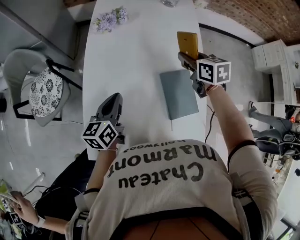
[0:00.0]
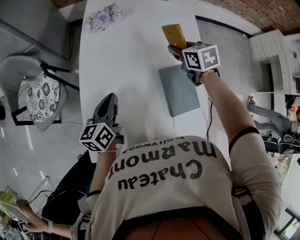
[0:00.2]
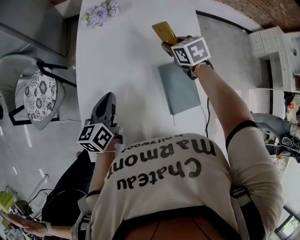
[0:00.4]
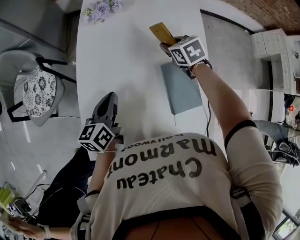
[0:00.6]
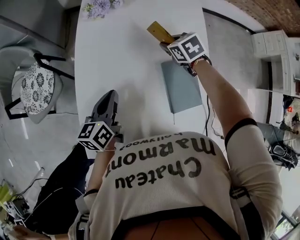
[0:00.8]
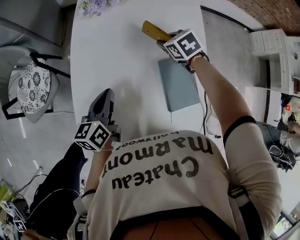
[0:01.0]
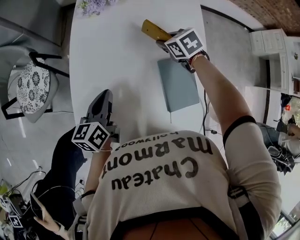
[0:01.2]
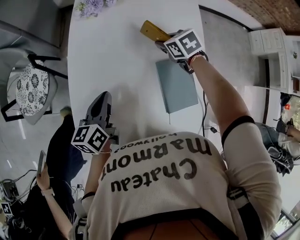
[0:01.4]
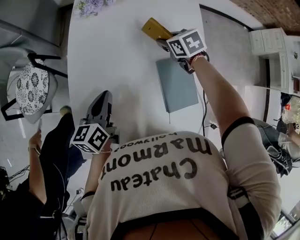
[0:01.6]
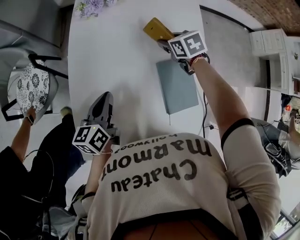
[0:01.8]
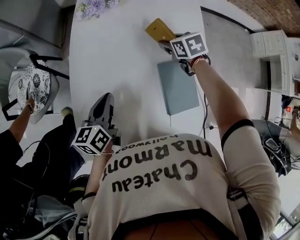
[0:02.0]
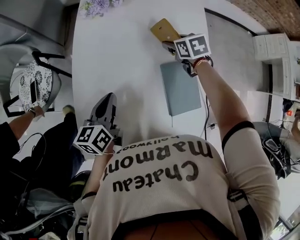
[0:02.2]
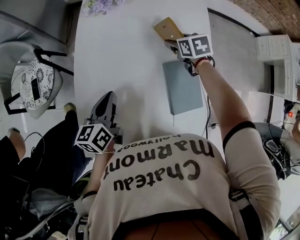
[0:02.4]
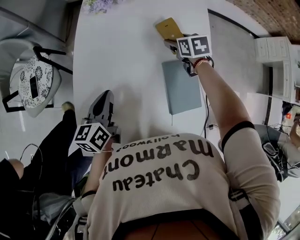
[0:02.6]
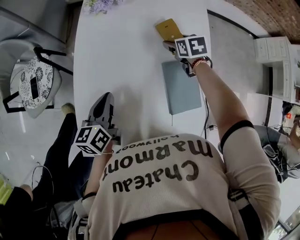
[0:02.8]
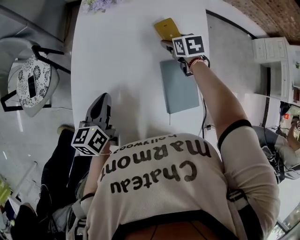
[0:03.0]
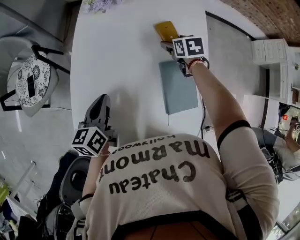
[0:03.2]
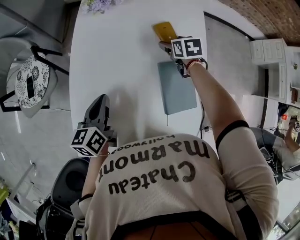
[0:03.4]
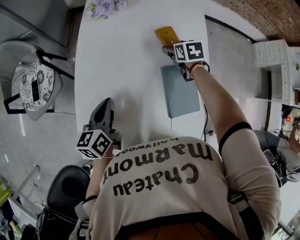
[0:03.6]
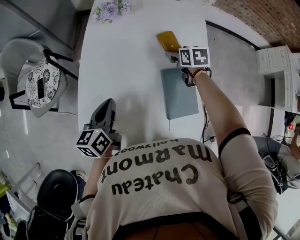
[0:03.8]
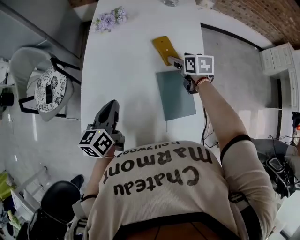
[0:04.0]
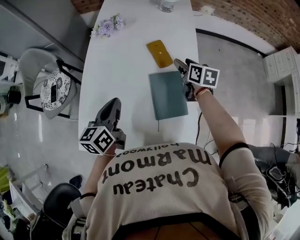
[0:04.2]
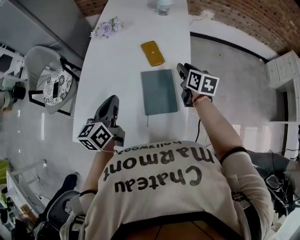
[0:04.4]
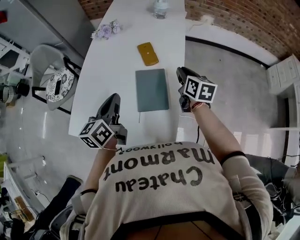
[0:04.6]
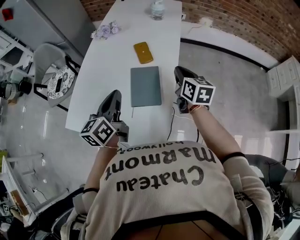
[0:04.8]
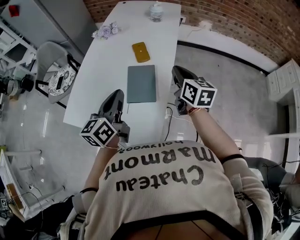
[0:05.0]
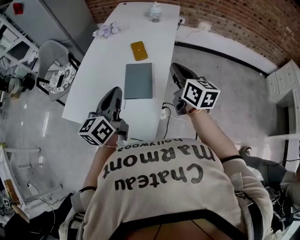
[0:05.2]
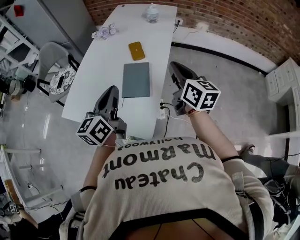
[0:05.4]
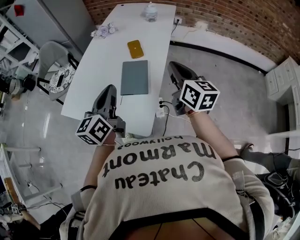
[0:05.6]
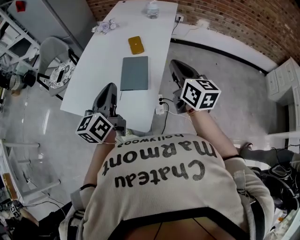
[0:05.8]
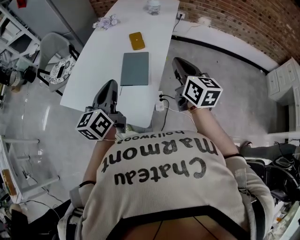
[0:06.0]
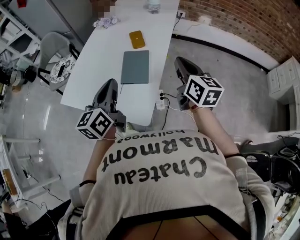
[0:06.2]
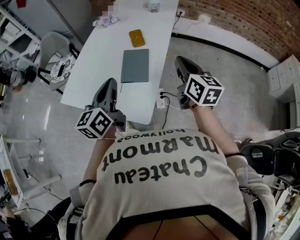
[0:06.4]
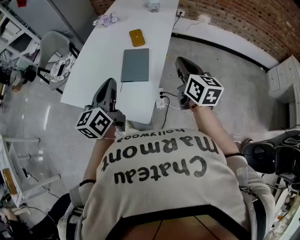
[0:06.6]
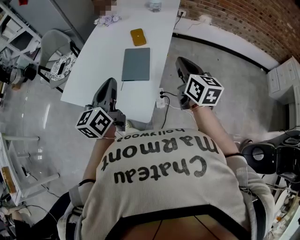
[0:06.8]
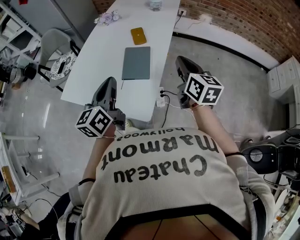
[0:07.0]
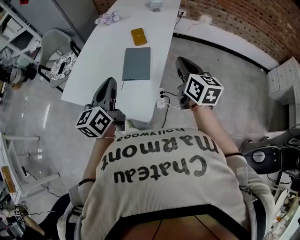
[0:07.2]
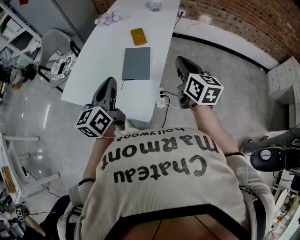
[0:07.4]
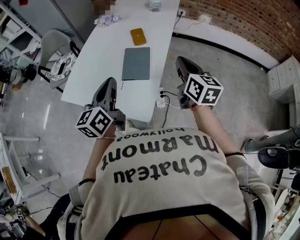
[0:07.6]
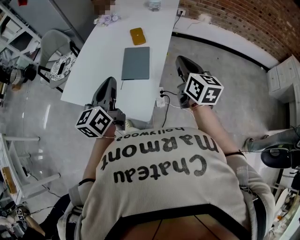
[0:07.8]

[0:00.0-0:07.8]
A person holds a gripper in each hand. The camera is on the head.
0:00.0 to 0:01.6: The right gripper heads downward, covering roughly 15 cm, and turns by approximately 20 degrees.
0:01.6 to 0:03.2: The right gripper opens up.
0:03.2 to 0:04.6: The grippers both shift to the right, upward and backward by some 25 cm. The right gripper points its fingers roughly 30 degrees further upward, and closes.
0:04.6 to 0:06.2: The left gripper heads backward, to the right and upward, covering about 20 cm; the right gripper heads backward and upward, covering about 20 cm, and rotates about 20 degrees.
0:06.2 to 0:07.8: The grippers move only a little.

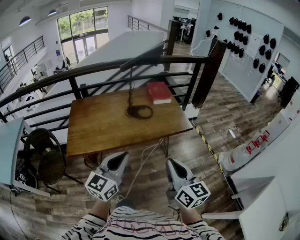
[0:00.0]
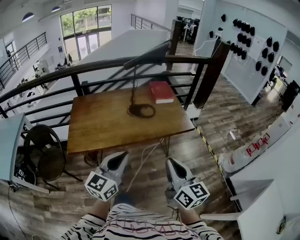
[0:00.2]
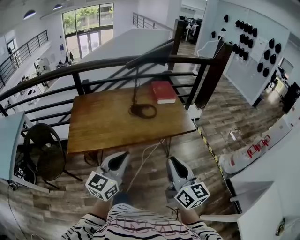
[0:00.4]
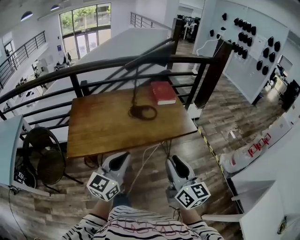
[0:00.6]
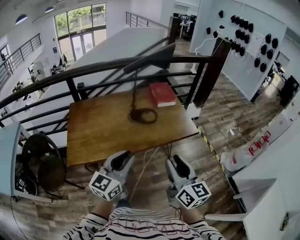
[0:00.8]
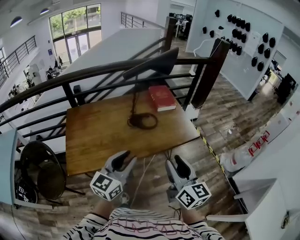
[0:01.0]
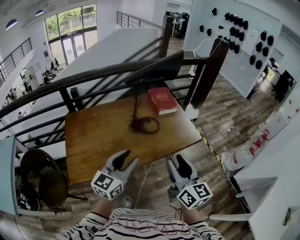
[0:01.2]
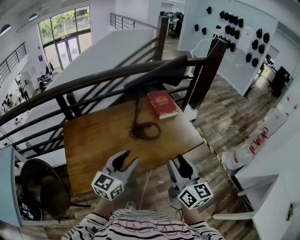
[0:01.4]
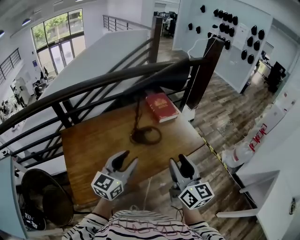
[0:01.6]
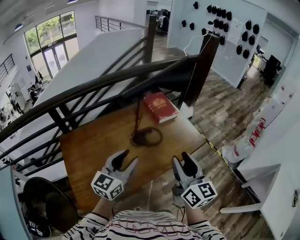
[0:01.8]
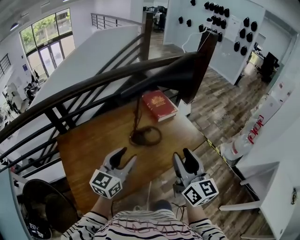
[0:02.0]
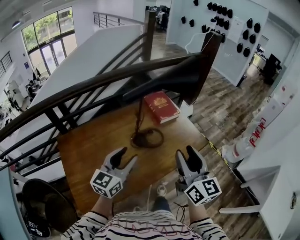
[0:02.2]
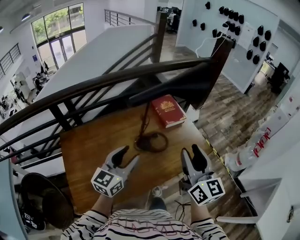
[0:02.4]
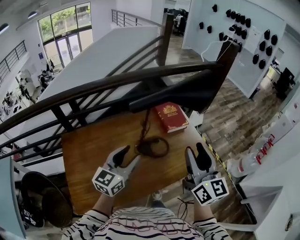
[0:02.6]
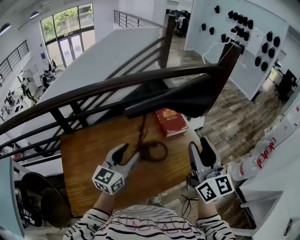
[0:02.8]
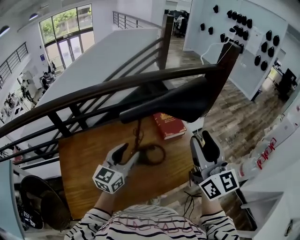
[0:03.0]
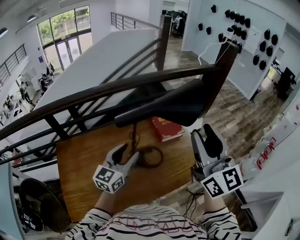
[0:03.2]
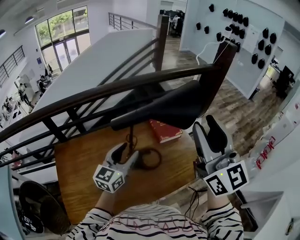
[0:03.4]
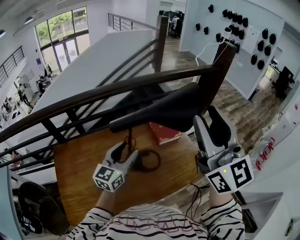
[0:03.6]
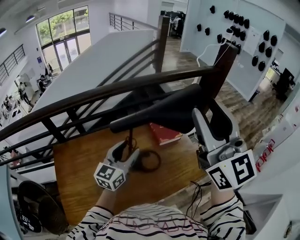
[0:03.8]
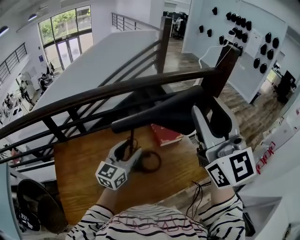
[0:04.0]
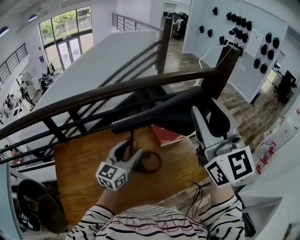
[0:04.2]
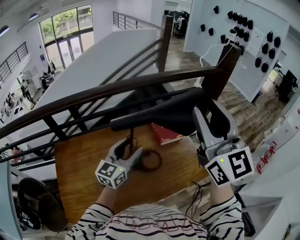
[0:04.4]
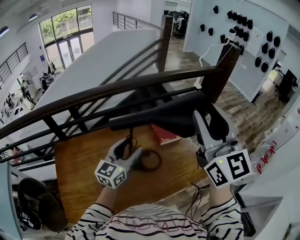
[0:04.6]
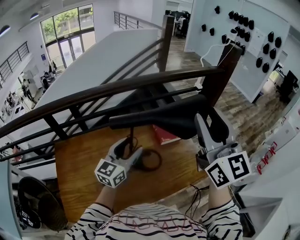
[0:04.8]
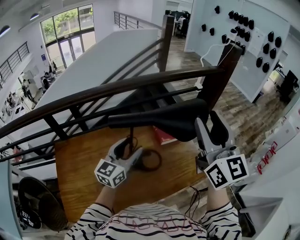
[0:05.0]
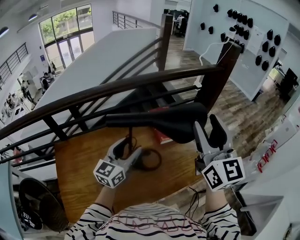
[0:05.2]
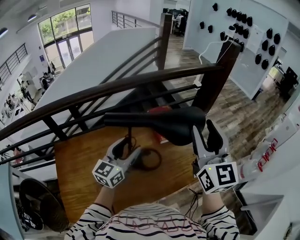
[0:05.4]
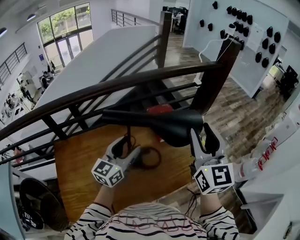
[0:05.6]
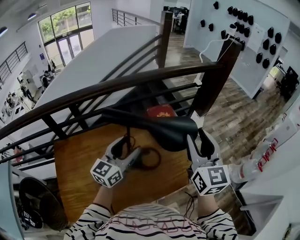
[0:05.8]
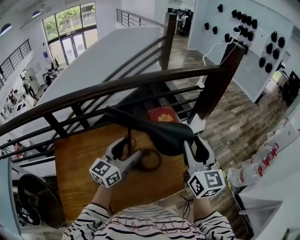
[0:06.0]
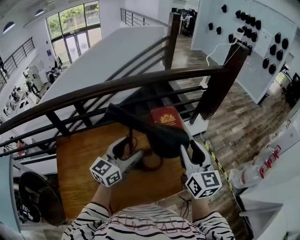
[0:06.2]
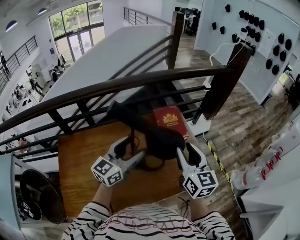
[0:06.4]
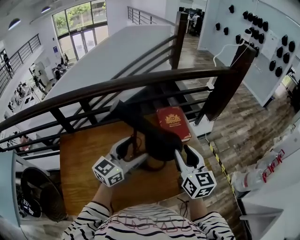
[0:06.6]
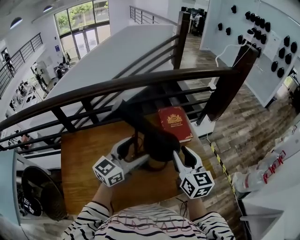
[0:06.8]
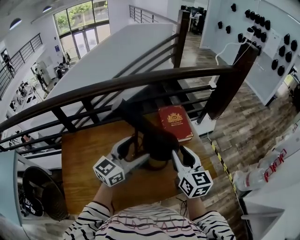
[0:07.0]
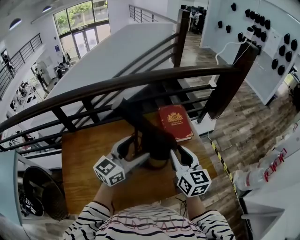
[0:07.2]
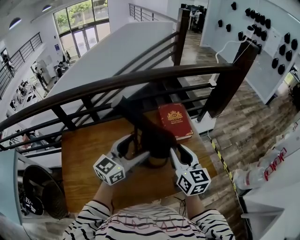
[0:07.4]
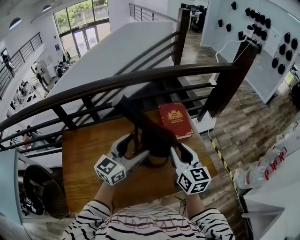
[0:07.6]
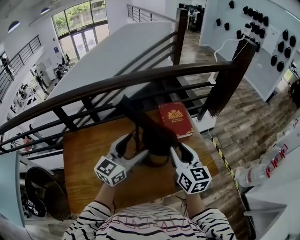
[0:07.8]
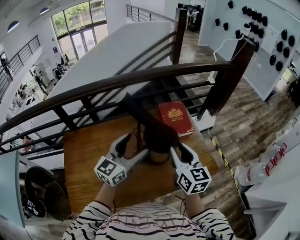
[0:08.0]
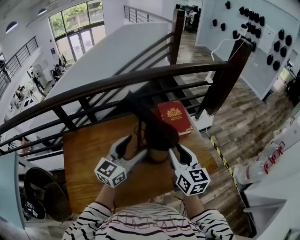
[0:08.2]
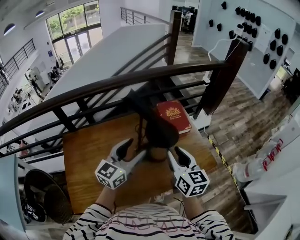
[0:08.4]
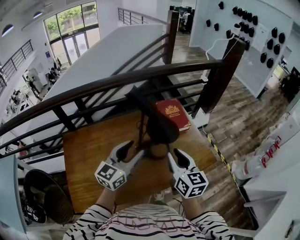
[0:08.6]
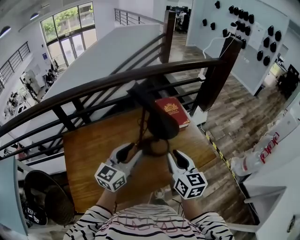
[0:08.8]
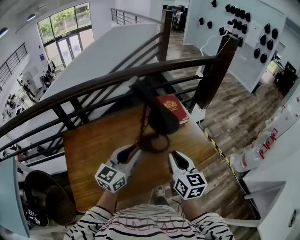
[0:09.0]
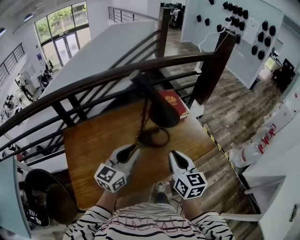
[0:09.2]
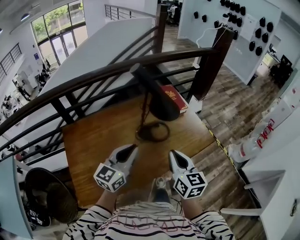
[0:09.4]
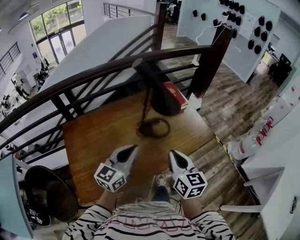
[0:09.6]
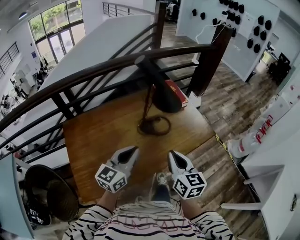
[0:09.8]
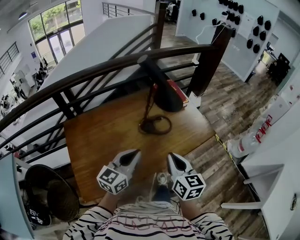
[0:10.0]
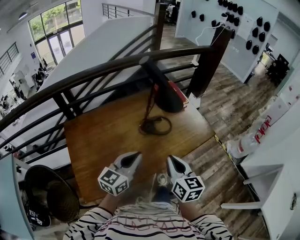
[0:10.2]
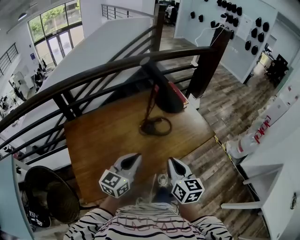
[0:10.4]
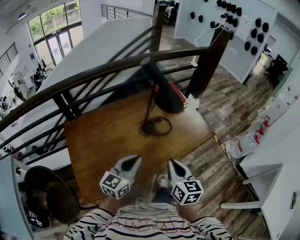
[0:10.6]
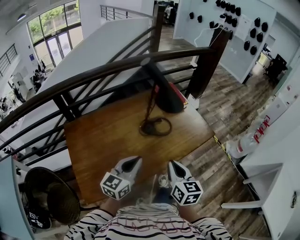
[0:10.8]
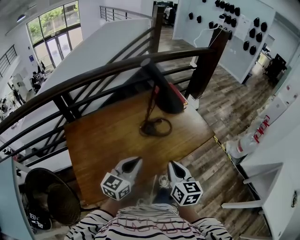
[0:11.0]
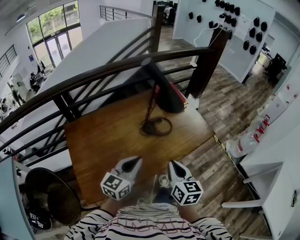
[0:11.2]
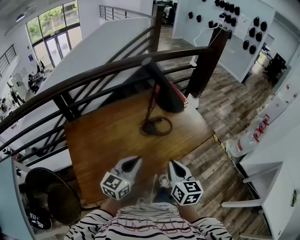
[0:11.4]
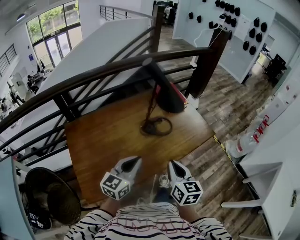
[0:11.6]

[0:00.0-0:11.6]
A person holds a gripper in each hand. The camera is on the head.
0:00.0 to 0:01.4: Both grippers travel together forward and to the left, some 30 cm. The right gripper opens up, while the left gripper opens.
0:01.4 to 0:02.8: Both grippers travel together forward, approximately 25 cm.
0:02.8 to 0:04.4: The right gripper travels upward and forward by approximately 15 cm, and rotates some 20 degrees. Meanwhile the left gripper goes about 10 cm forward and to the right.
0:04.4 to 0:05.8: The right gripper travels downward by about 15 cm.
0:05.8 to 0:07.2: The right gripper is displaced downward and to the left by about 15 cm, and turns by about 20 degrees.
0:07.2 to 0:08.8: Both grippers travel together backward, about 15 cm. The left gripper closes up.
0:08.8 to 0:10.2: The two grippers go approximately 15 cm backward. The right gripper closes, while the left gripper closes its fingers.
0:10.2 to 0:11.6: The grippers stay close to where they were, moving slightly.

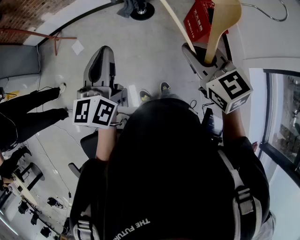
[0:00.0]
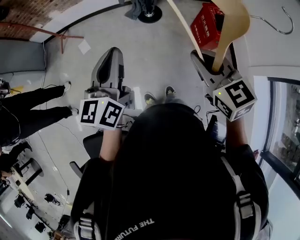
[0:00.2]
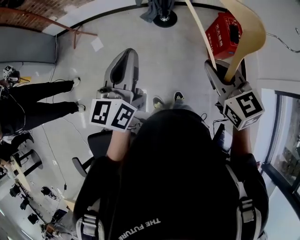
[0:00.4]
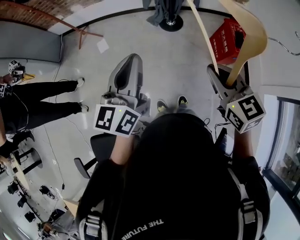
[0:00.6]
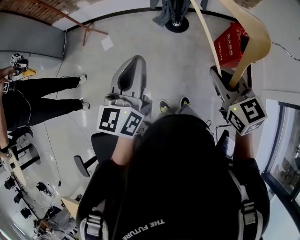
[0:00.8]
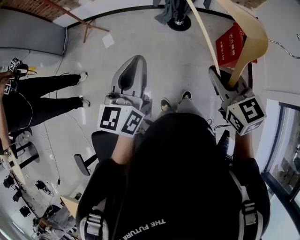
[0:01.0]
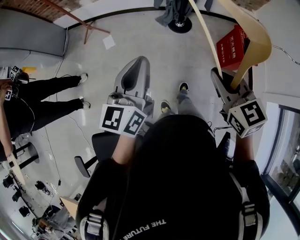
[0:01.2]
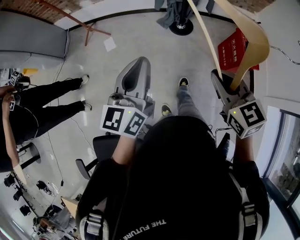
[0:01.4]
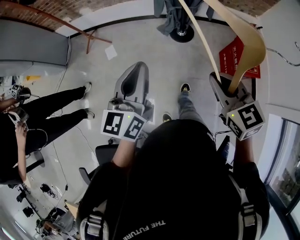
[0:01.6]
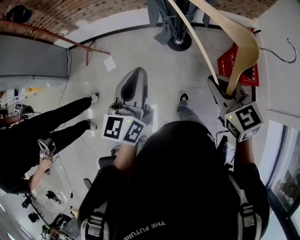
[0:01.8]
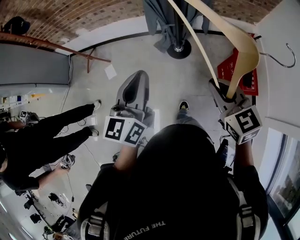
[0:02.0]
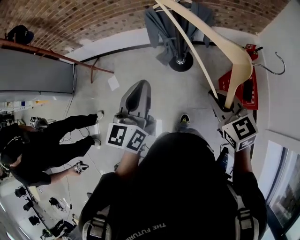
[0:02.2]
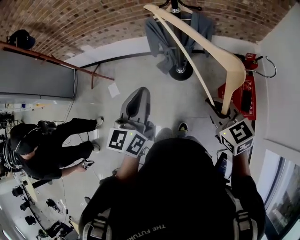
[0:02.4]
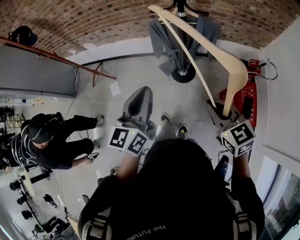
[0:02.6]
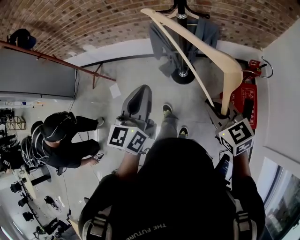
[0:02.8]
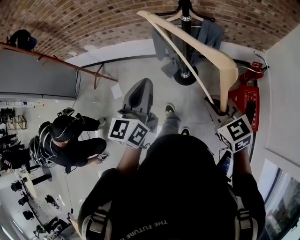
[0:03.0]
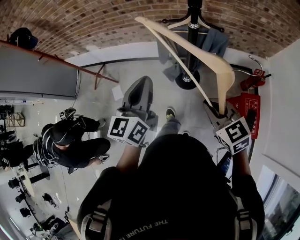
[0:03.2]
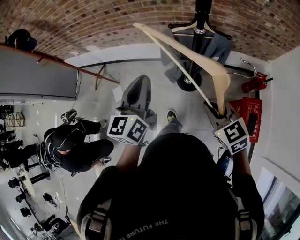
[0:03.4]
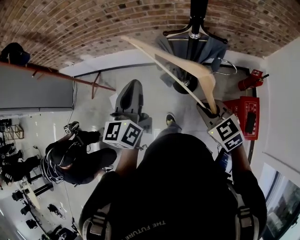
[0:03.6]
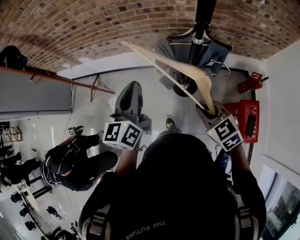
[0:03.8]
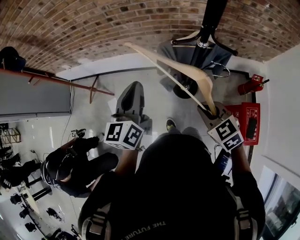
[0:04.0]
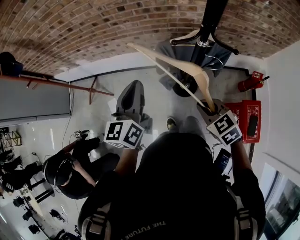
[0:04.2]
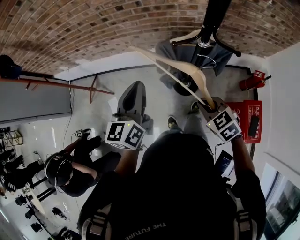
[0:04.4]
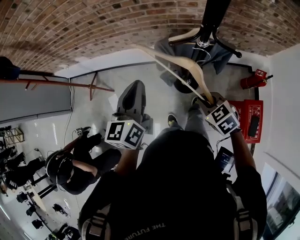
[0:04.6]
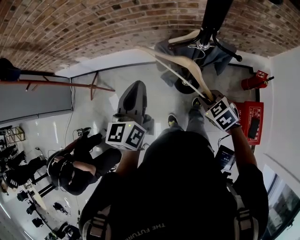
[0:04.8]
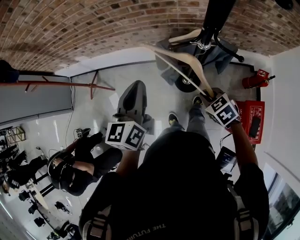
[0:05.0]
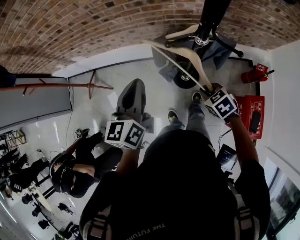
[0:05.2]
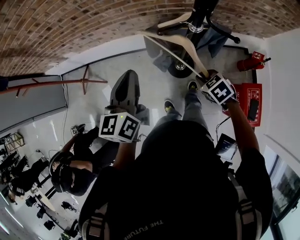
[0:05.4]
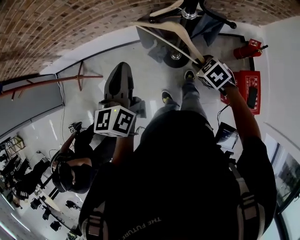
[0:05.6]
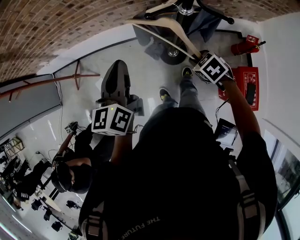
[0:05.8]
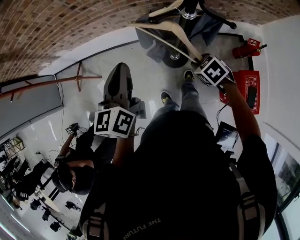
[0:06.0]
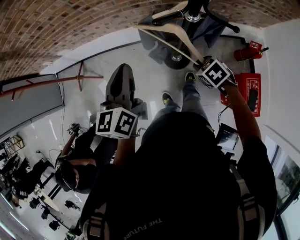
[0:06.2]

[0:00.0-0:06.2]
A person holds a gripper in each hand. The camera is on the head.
0:00.0 to 0:01.6: Both grippers travel together forward and to the left, roughly 15 cm.
0:01.6 to 0:03.2: Both grippers travel together forward, roughly 35 cm.
0:03.2 to 0:04.6: The left gripper is displaced forward by approximately 15 cm, while the right gripper travels forward and downward by roughly 20 cm.
0:04.6 to 0:06.2: The right gripper goes some 10 cm downward.
